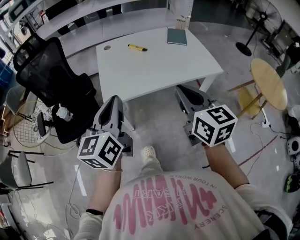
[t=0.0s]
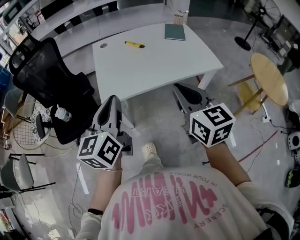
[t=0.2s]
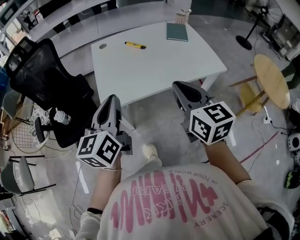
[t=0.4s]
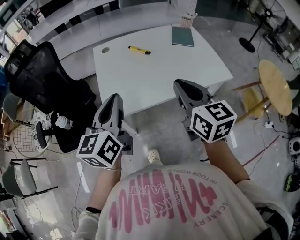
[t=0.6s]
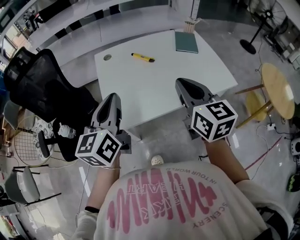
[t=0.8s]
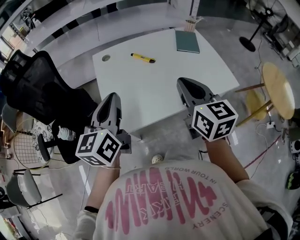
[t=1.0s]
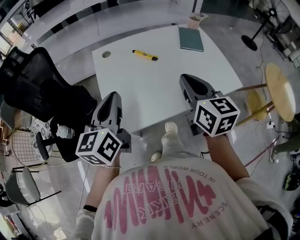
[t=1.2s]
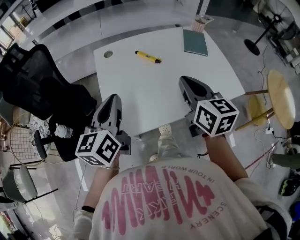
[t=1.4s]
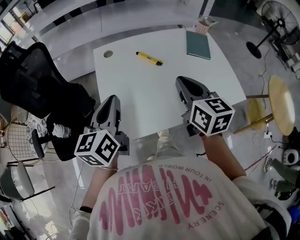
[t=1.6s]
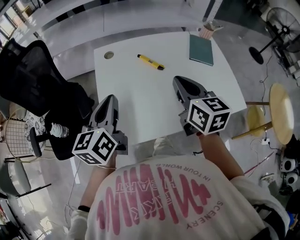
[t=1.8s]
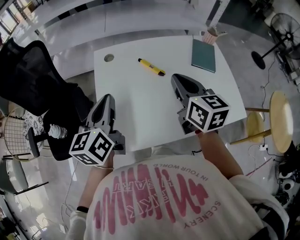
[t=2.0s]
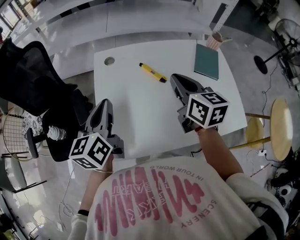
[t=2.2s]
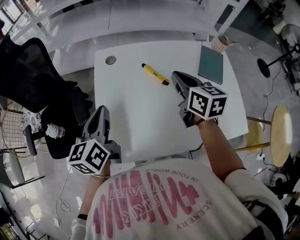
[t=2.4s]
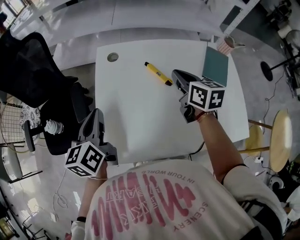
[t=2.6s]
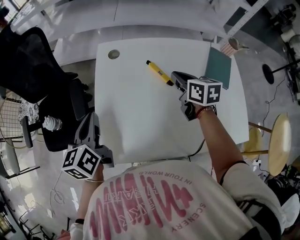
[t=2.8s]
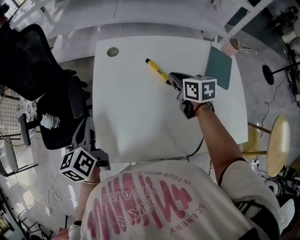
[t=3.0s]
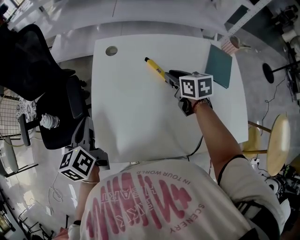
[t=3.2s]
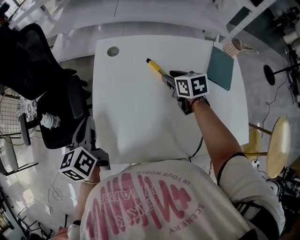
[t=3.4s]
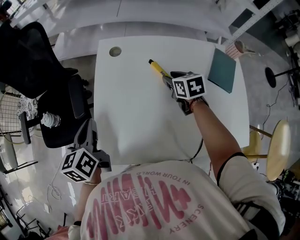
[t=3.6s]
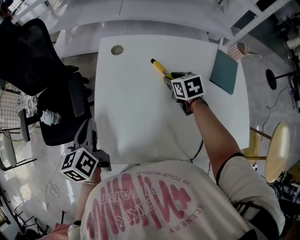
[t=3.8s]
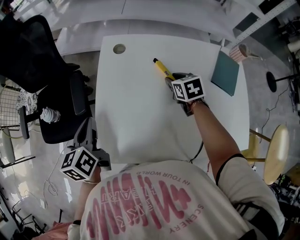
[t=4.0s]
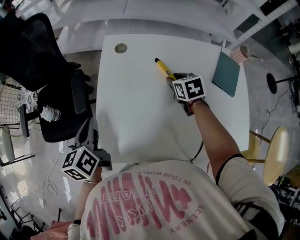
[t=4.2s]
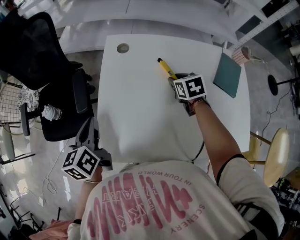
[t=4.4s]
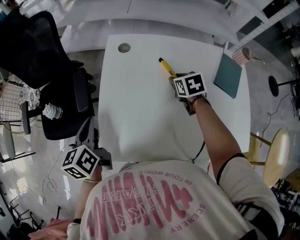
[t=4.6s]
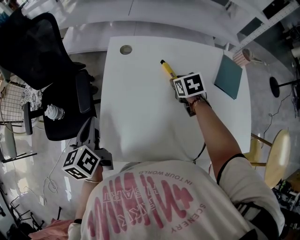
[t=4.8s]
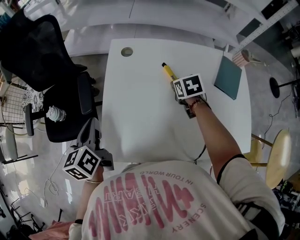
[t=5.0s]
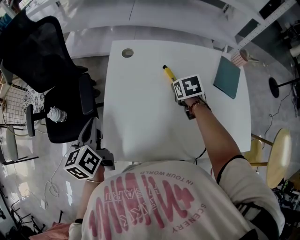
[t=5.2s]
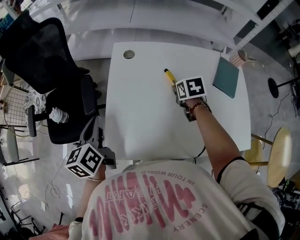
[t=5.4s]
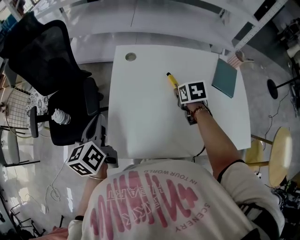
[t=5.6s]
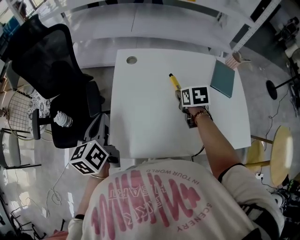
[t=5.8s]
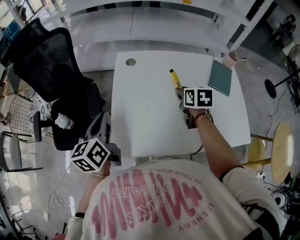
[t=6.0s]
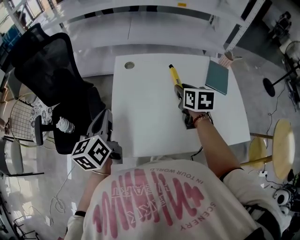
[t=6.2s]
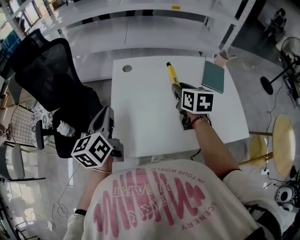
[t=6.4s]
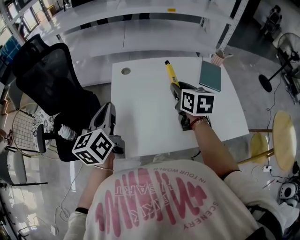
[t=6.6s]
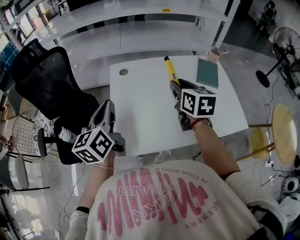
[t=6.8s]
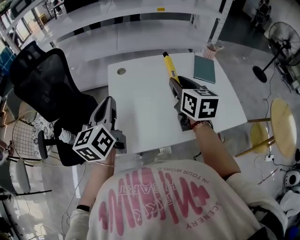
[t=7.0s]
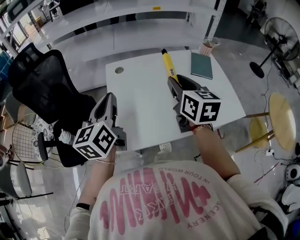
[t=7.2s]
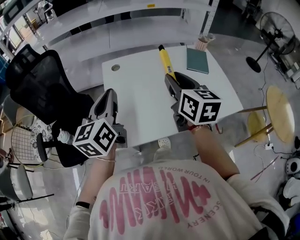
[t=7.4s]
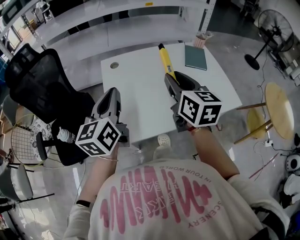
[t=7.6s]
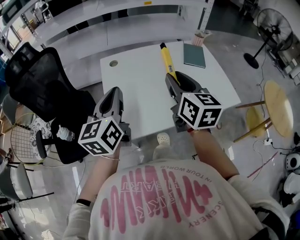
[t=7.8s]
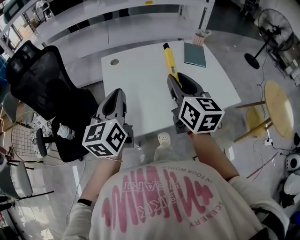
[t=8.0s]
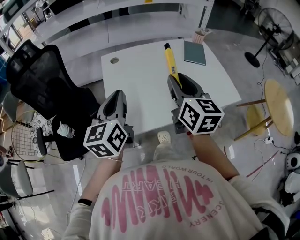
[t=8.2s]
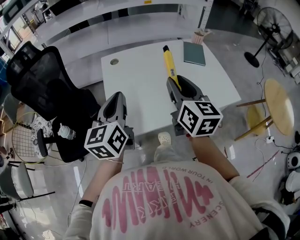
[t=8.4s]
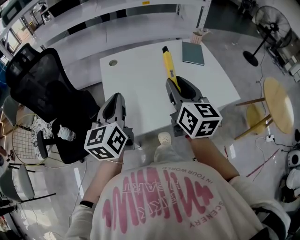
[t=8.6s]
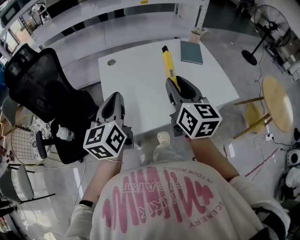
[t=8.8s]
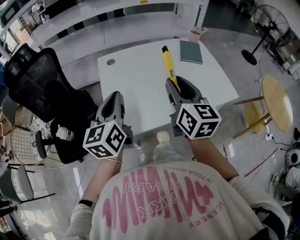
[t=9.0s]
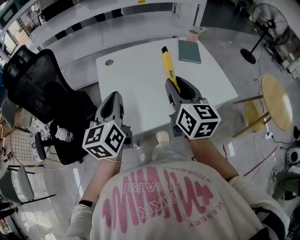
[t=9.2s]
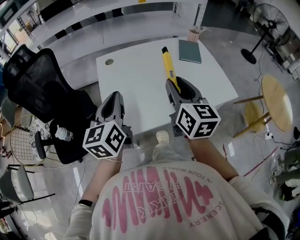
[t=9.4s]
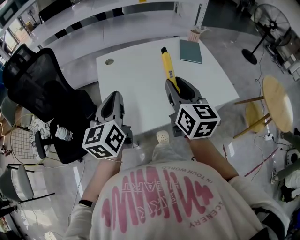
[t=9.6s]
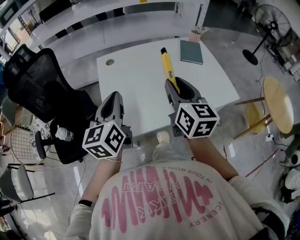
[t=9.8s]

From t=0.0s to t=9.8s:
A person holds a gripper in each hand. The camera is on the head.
From t=0.0s to t=1.4s: The two grippers go some 30 cm forward.
From t=1.4s to t=2.8s: The left gripper shifts roughly 20 cm forward, downward and to the left, and swivels roughly 30 degrees. Meanwhile the right gripper travels forward and downward by about 35 cm, and rotates approximately 30 degrees.
From t=2.8s to t=4.2s: The left gripper shifts by approximately 5 cm; the right gripper is displaced downward by about 10 cm, turns by about 30 degrees, and opens.
From t=4.2s to t=5.6s: The left gripper ends up some 5 cm from where it was, while the right gripper travels backward by some 5 cm.
From t=5.6s to t=7.0s: The left gripper moves upward and to the right, roughly 15 cm, and swivels some 20 degrees. Meanwhile the right gripper heads upward and backward, covering about 25 cm, and angles its fingers upward, by roughly 40 degrees.
From t=7.0s to t=8.4s: The left gripper is displaced backward by roughly 10 cm, while the right gripper travels backward by approximately 15 cm.
From t=8.4s to t=9.8s: The grippers stay close to where they were, moving slightly.

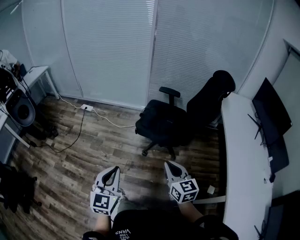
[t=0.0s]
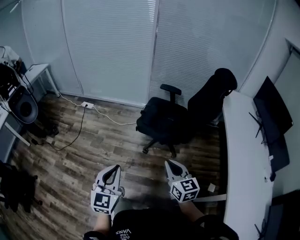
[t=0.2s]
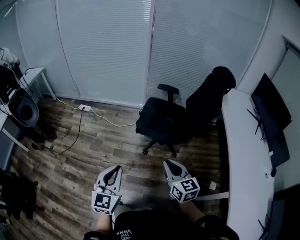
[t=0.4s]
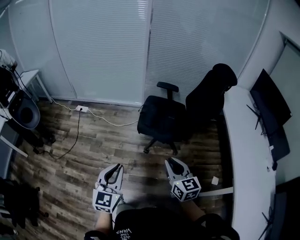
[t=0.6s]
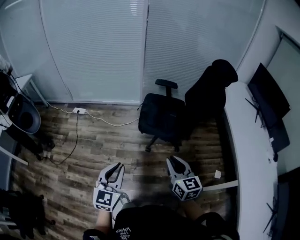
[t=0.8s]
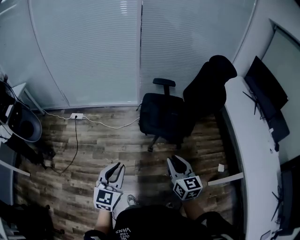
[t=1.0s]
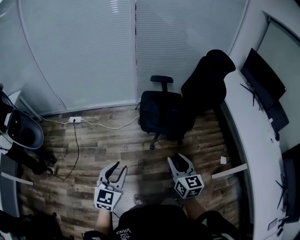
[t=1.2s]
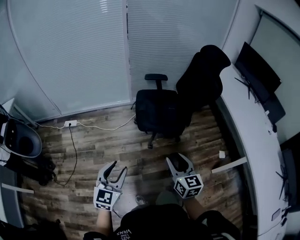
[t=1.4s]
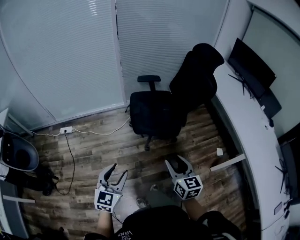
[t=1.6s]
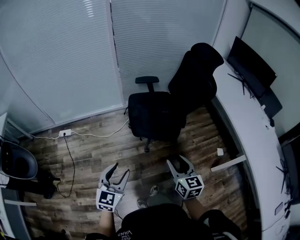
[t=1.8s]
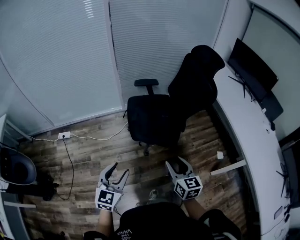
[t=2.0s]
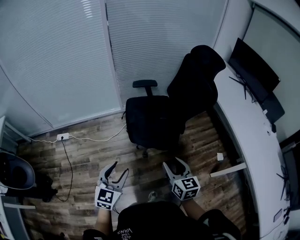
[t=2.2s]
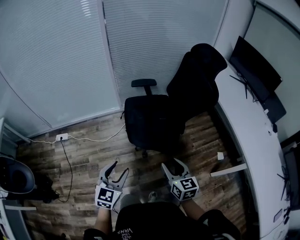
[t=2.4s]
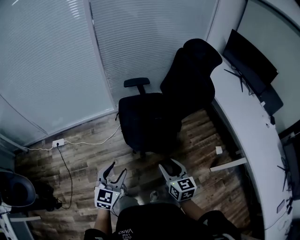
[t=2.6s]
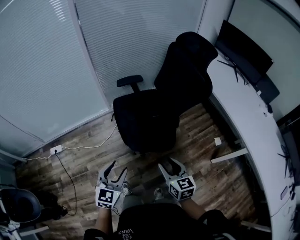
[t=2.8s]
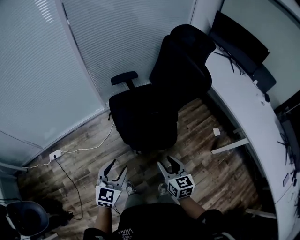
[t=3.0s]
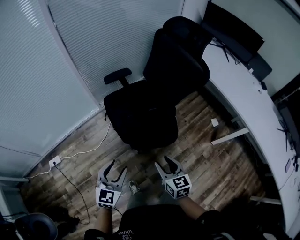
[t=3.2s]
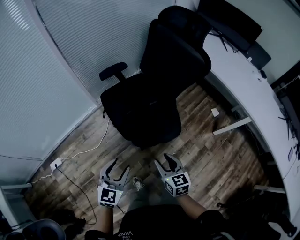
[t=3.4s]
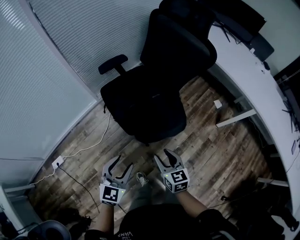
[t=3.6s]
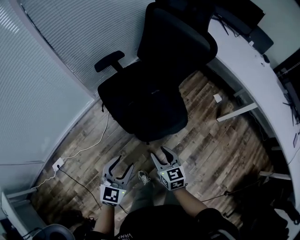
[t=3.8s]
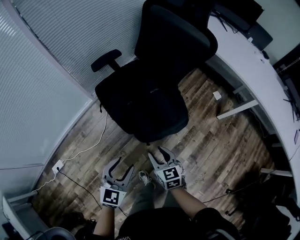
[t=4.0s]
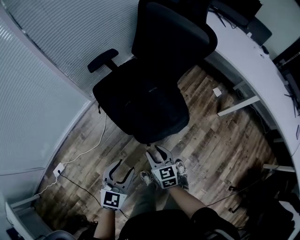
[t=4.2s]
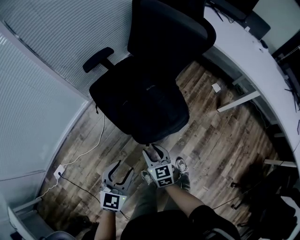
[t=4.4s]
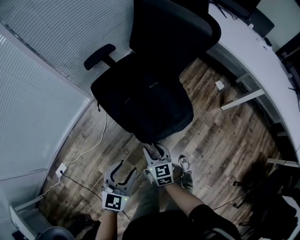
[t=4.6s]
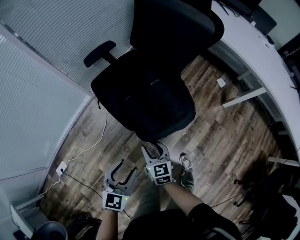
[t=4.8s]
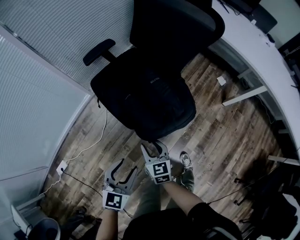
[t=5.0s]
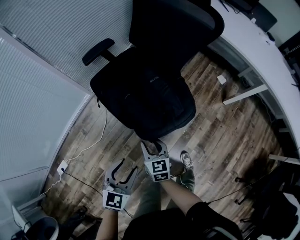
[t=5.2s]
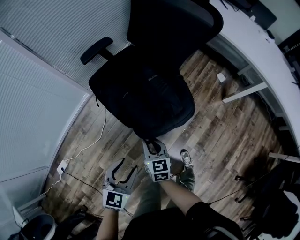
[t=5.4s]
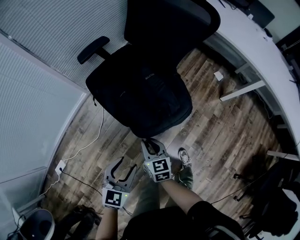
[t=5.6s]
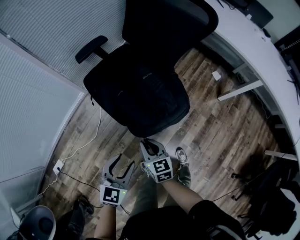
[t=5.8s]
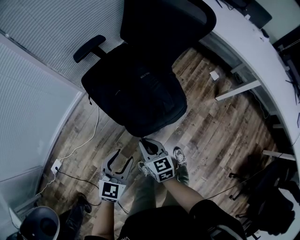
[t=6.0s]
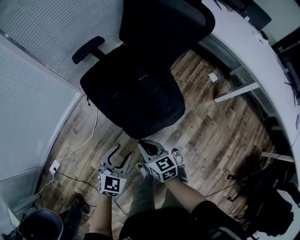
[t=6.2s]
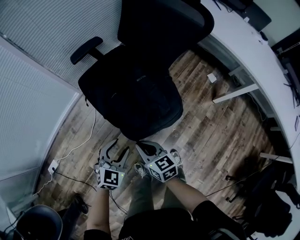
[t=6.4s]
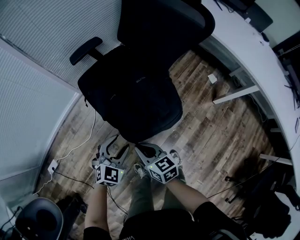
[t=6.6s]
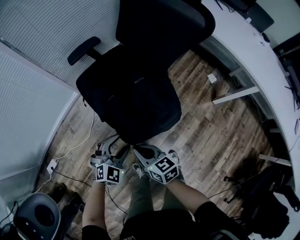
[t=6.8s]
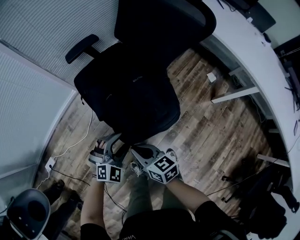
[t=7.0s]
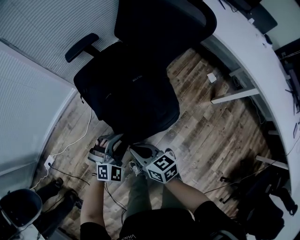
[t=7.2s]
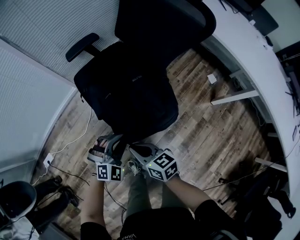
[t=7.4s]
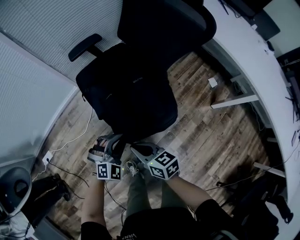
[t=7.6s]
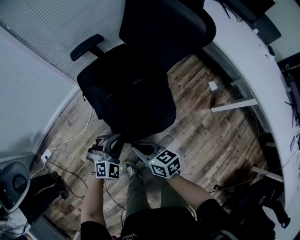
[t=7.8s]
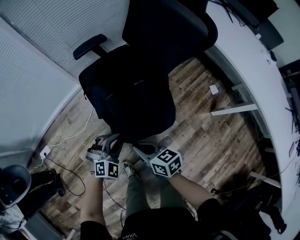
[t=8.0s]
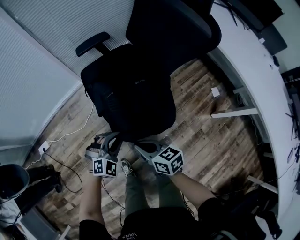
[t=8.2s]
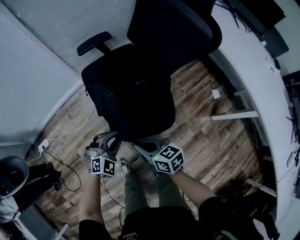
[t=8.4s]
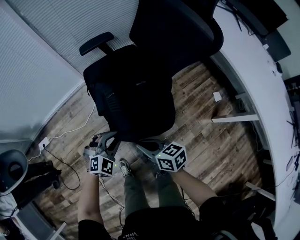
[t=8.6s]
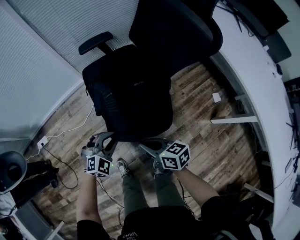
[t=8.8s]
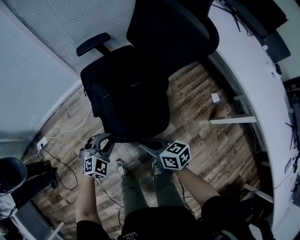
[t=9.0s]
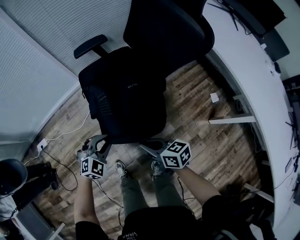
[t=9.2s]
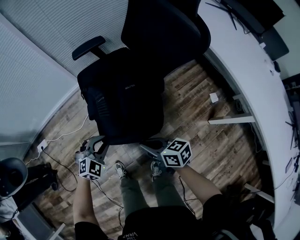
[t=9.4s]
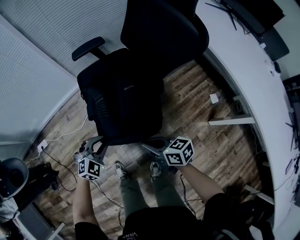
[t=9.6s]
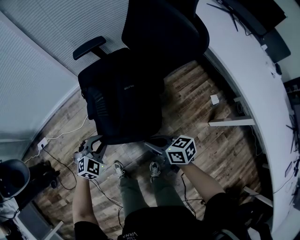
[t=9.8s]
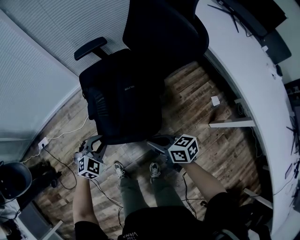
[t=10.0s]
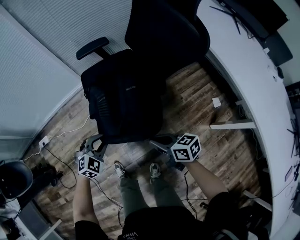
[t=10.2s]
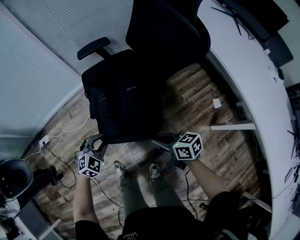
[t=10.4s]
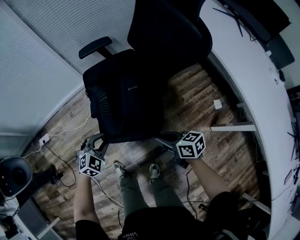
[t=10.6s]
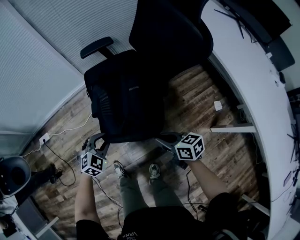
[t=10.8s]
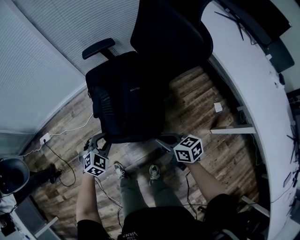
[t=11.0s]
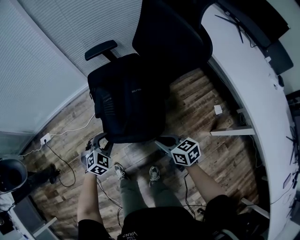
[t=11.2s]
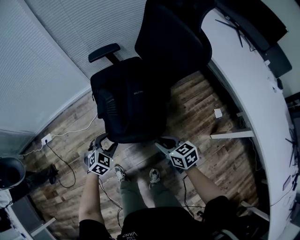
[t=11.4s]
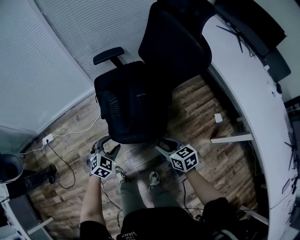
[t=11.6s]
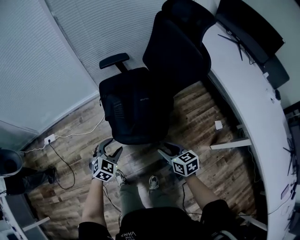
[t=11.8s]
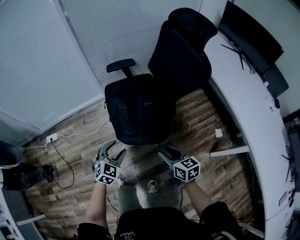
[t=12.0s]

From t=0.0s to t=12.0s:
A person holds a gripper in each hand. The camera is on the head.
From t=0.0s to t=1.6s: The right gripper moves about 20 cm, swivels about 30 degrees, and opens up. The left gripper changes place by roughly 30 cm, rotates about 30 degrees, and opens its fingers.
From t=1.6s to t=3.0s: The left gripper is displaced forward by roughly 25 cm, while the right gripper shifts roughly 20 cm forward and downward.
From t=3.0s to t=4.4s: The right gripper heads downward and to the left, covering roughly 25 cm. Meanwhile the left gripper travels downward by roughly 15 cm, and rotates about 20 degrees.
From t=4.4s to t=6.0s: The left gripper moves downward, about 5 cm. The right gripper closes up.
From t=6.0s to t=7.6s: The left gripper heads to the right and forward, covering roughly 10 cm, changes its angle by roughly 40 degrees, and closes up. Meanwhile the right gripper moves some 5 cm, and rotates some 30 degrees.
From t=7.6s to t=9.0s: The right gripper heads to the right, covering about 10 cm.
From t=9.0s to t=10.4s: The right gripper shifts about 10 cm to the right.
From t=10.4s to t=12.0s: Both grippers travel together upward and backward, some 10 cm. The right gripper turns by approximately 20 degrees, and opens up, while the left gripper swivels roughly 20 degrees, and opens up.

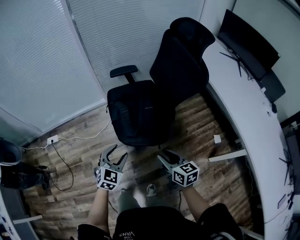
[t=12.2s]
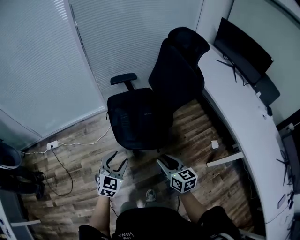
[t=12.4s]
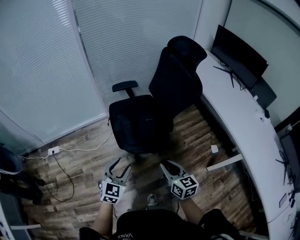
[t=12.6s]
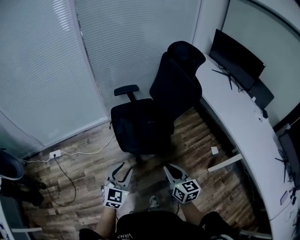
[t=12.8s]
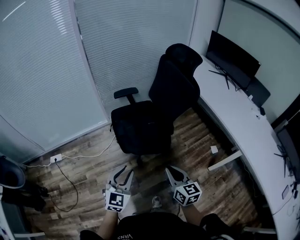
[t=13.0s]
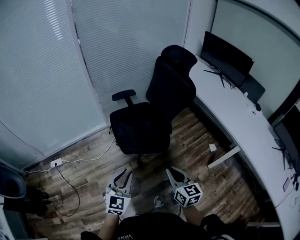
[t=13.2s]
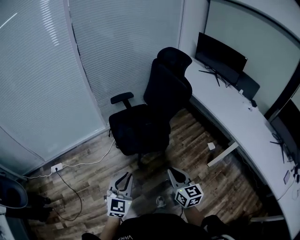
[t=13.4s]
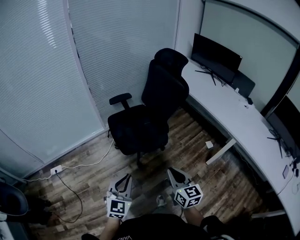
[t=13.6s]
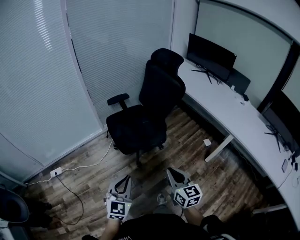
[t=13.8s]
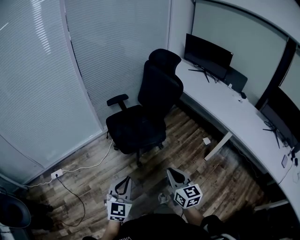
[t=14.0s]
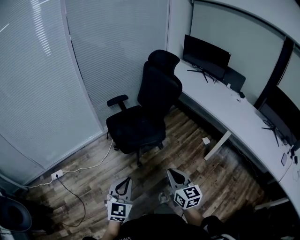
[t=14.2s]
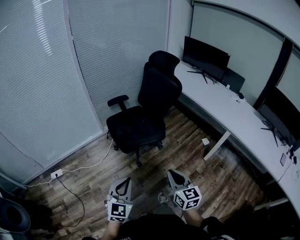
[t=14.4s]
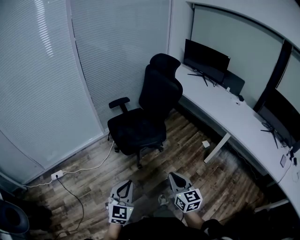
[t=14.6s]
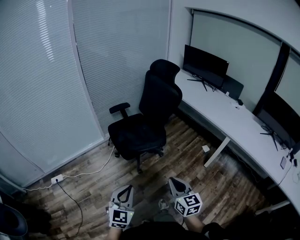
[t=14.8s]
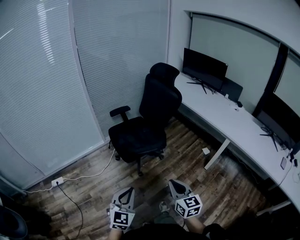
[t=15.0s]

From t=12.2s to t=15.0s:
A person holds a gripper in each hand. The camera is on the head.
From t=12.2s to t=13.6s: Both grippers move backward and upward, approximately 25 cm. The right gripper rotates approximately 30 degrees, and closes. The left gripper closes up.
From t=13.6s to t=15.0s: The two grippers go about 15 cm backward.
